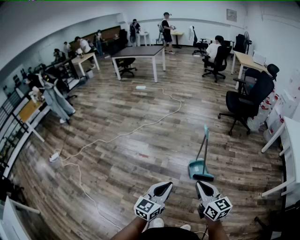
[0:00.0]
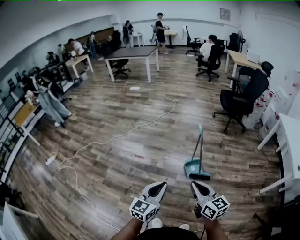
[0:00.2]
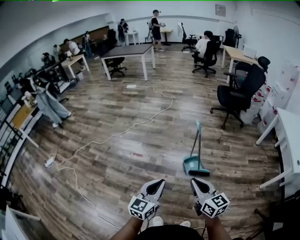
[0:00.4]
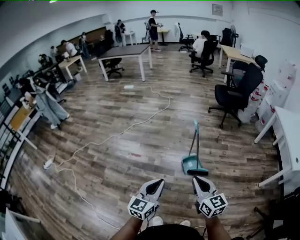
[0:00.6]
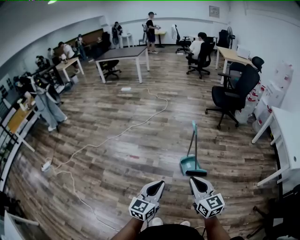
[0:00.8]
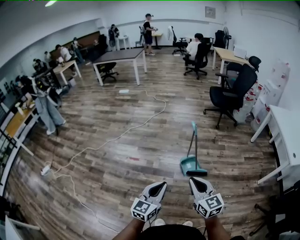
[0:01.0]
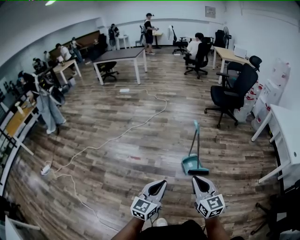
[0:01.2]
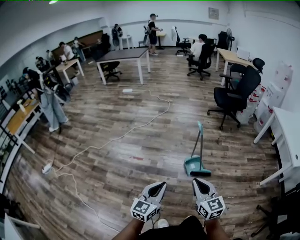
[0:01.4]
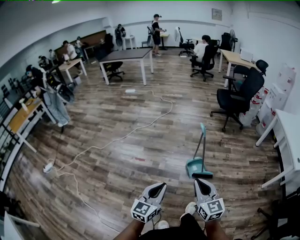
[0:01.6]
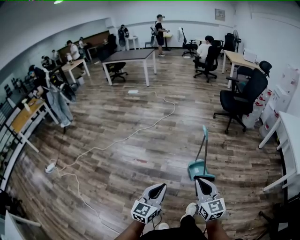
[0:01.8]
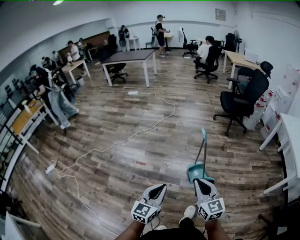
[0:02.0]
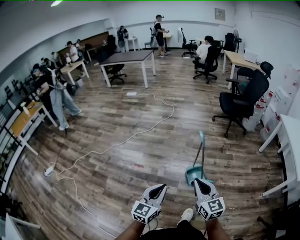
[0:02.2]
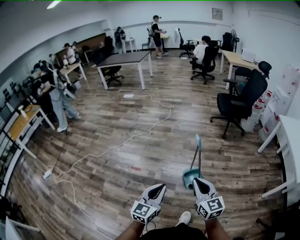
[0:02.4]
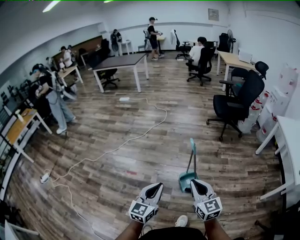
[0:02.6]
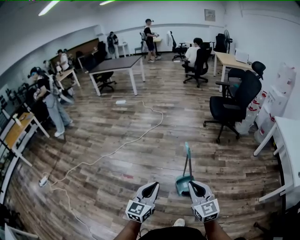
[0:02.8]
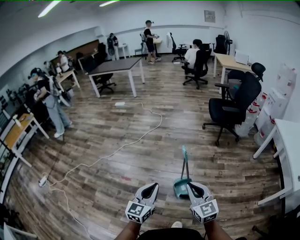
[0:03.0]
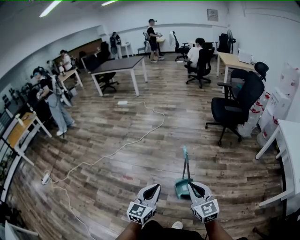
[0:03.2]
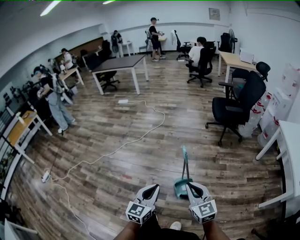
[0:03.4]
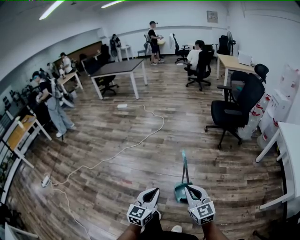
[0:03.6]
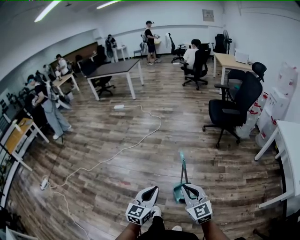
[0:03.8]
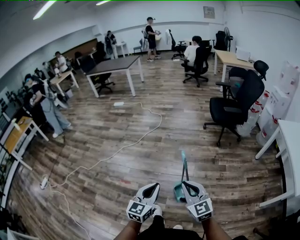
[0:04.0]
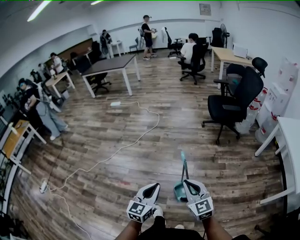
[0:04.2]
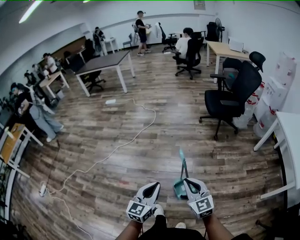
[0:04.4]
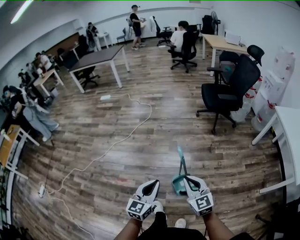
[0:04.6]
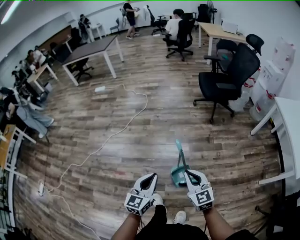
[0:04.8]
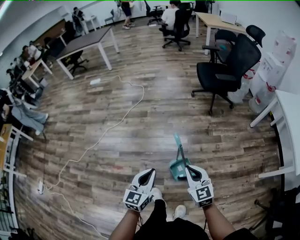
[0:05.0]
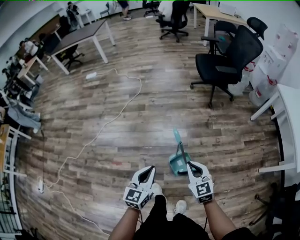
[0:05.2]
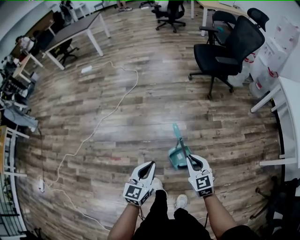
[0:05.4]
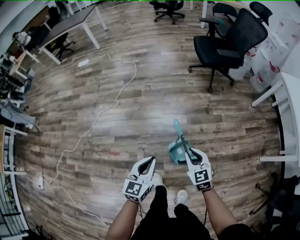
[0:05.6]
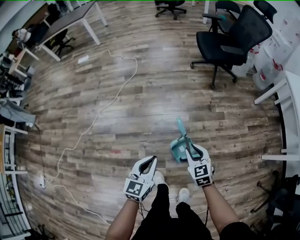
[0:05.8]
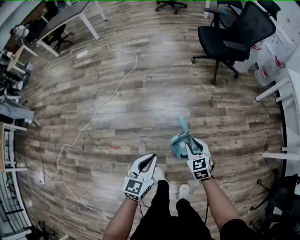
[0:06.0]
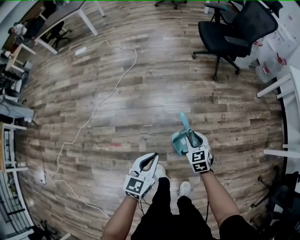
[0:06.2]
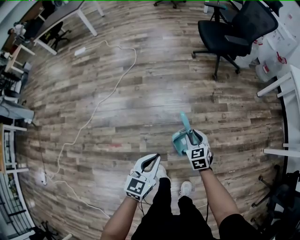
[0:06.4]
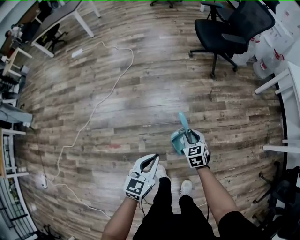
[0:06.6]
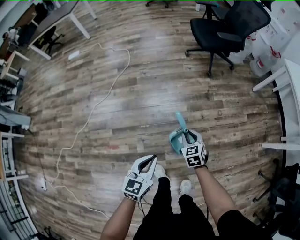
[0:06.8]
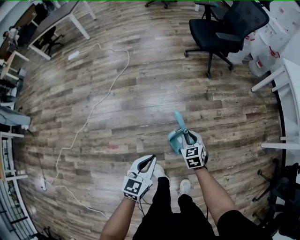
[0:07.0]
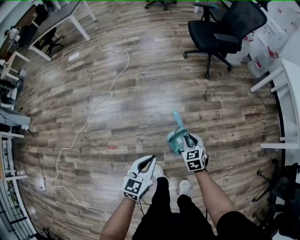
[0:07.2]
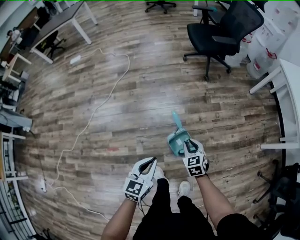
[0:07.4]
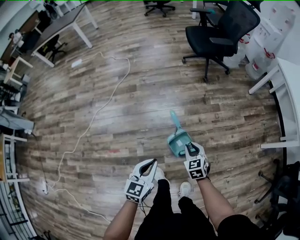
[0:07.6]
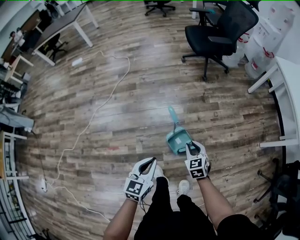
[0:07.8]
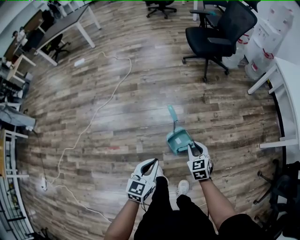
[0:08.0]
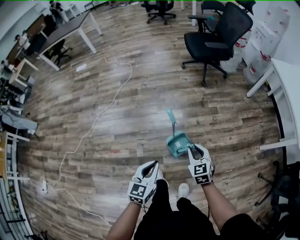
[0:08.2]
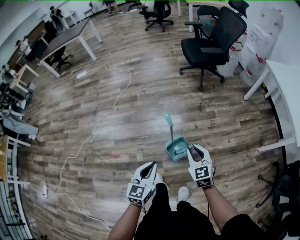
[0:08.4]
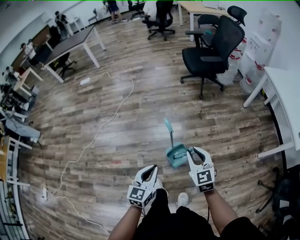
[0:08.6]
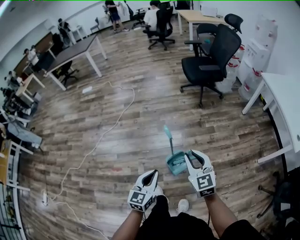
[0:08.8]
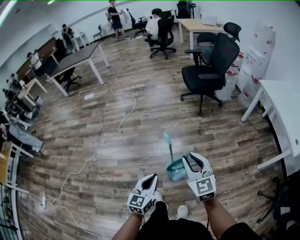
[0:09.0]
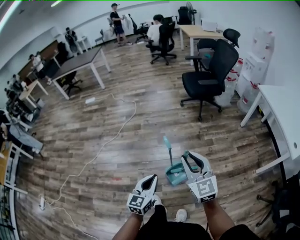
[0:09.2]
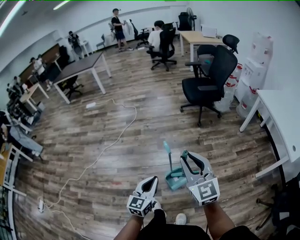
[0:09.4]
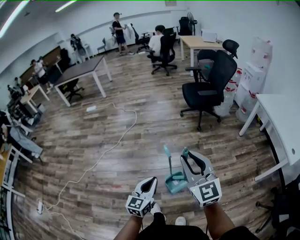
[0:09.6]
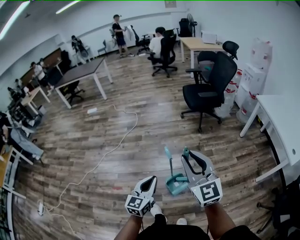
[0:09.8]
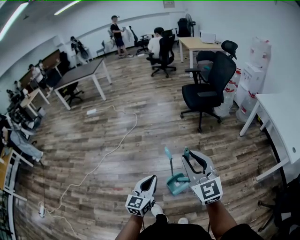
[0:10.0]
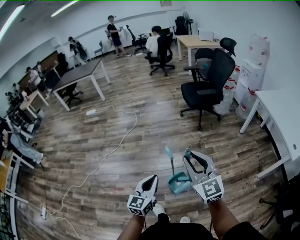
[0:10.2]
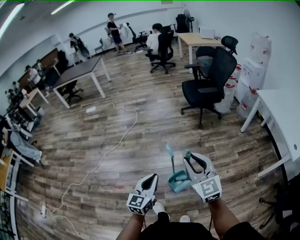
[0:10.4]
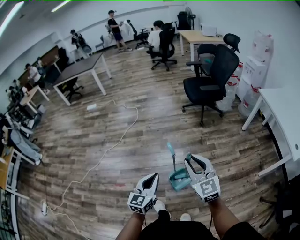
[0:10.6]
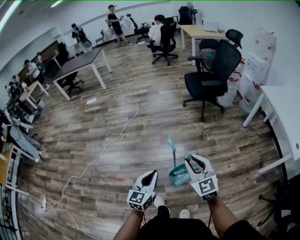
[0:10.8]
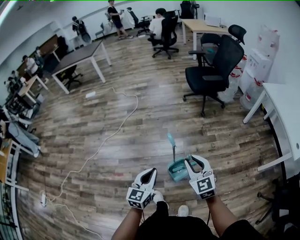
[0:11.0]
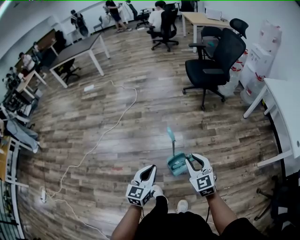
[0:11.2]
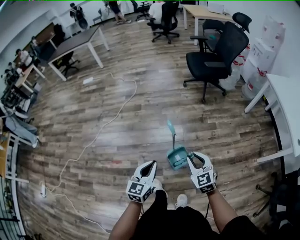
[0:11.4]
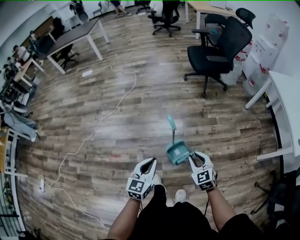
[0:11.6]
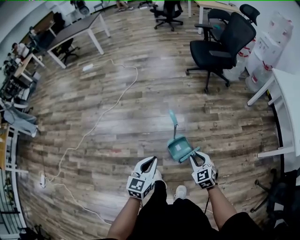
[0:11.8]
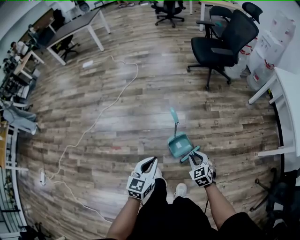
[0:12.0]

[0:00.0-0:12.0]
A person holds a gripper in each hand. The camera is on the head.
0:00.0 to 0:01.6: Both grippers move to the left, roughly 5 cm.
0:01.6 to 0:03.0: Both grippers travel together forward and to the right, about 25 cm.
0:03.0 to 0:04.4: The grippers both shift forward by some 10 cm.
0:04.4 to 0:06.0: The right gripper shifts about 25 cm downward and forward, swivels about 30 degrees, and opens its fingers. Meanwhile the left gripper travels downward and forward by roughly 15 cm.
0:06.0 to 0:07.6: The left gripper moves roughly 5 cm, while the right gripper ends up roughly 5 cm from where it was.
0:07.6 to 0:09.0: The right gripper moves upward, approximately 30 cm, and points its fingers approximately 30 degrees further upward. The left gripper shifts approximately 10 cm upward and backward.
0:09.0 to 0:10.4: Both grippers travel together upward, some 5 cm.
0:10.4 to 0:12.0: The left gripper is displaced downward by approximately 10 cm, while the right gripper travels downward by approximately 35 cm, and points its fingers about 40 degrees further downward.

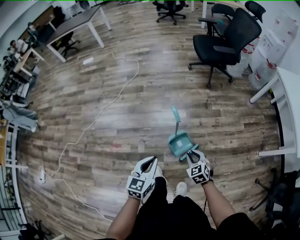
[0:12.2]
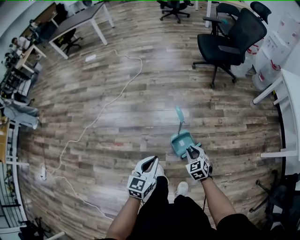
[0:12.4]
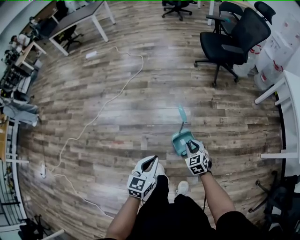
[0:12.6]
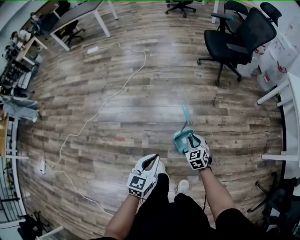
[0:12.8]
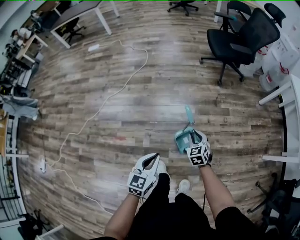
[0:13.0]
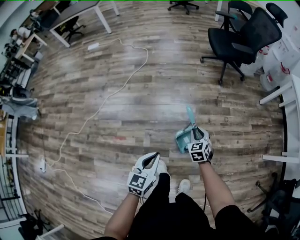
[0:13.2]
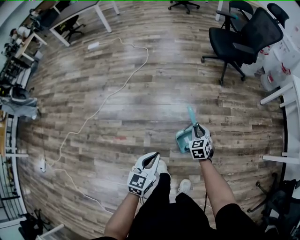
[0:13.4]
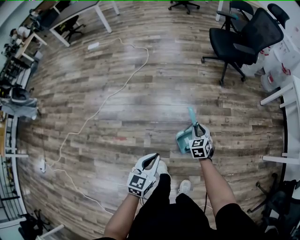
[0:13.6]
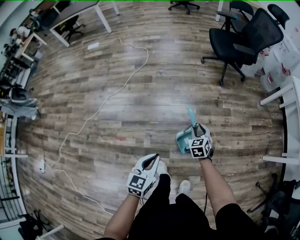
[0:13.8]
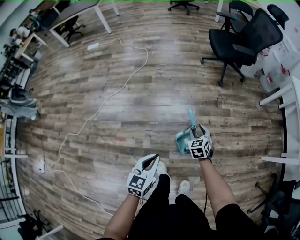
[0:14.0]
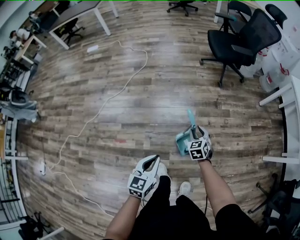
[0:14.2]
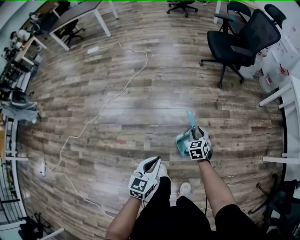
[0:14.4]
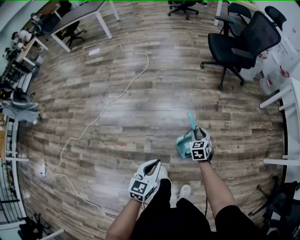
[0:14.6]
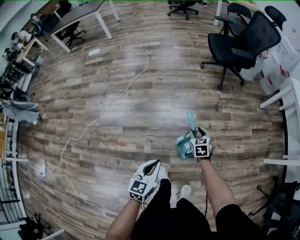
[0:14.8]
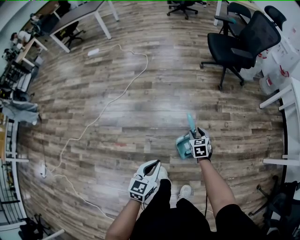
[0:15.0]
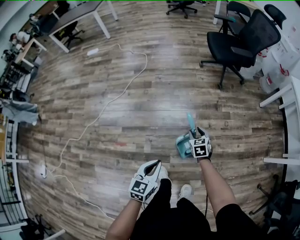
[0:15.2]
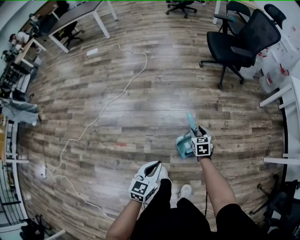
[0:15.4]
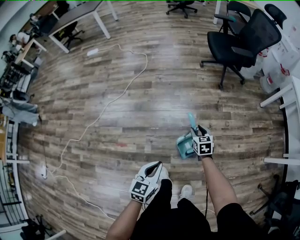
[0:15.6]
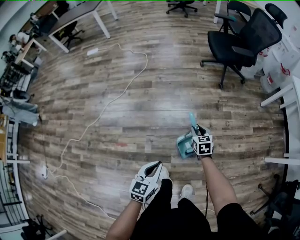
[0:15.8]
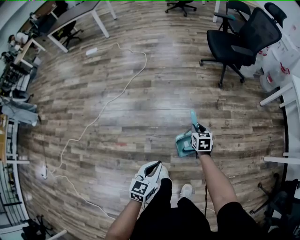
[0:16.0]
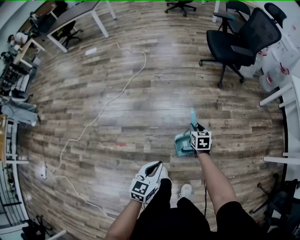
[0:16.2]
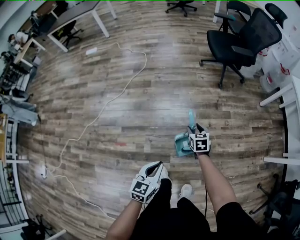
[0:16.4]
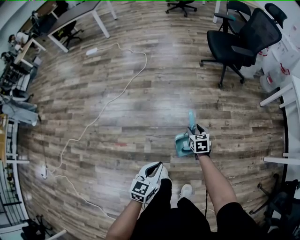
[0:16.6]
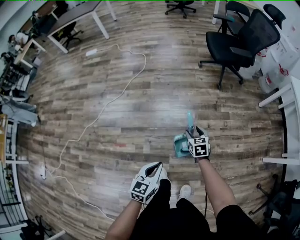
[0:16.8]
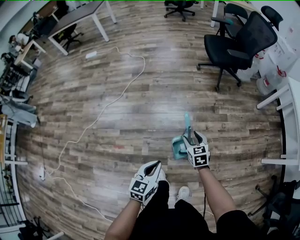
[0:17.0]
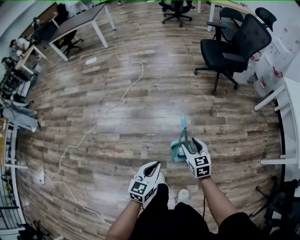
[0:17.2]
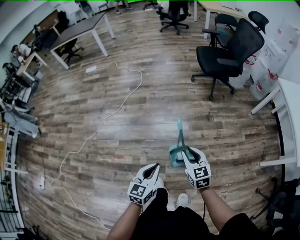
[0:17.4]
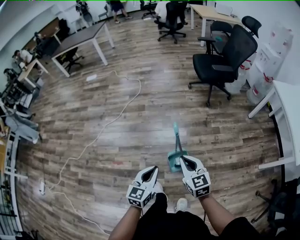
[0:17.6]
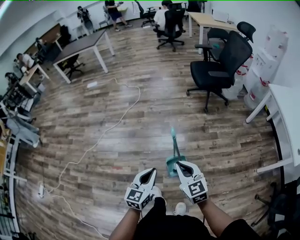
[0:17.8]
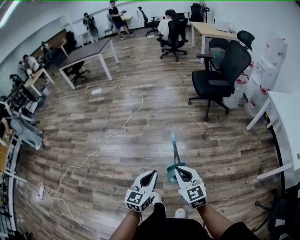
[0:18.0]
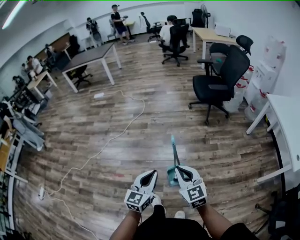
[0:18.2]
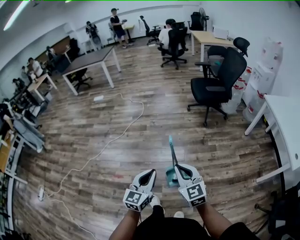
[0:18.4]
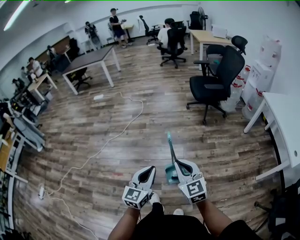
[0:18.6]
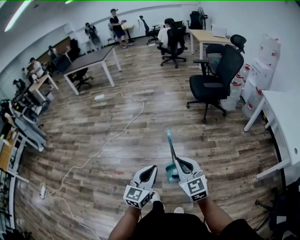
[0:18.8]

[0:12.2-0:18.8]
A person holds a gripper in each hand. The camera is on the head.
0:12.2 to 0:13.8: The right gripper moves forward, roughly 15 cm. Meanwhile the left gripper is displaced to the left by approximately 5 cm.
0:13.8 to 0:15.4: The grippers make only small movements.
0:15.4 to 0:17.2: The right gripper heads upward and backward, covering about 15 cm.
0:17.2 to 0:18.8: The right gripper shifts approximately 25 cm upward and backward, changes its angle by roughly 30 degrees, and closes. The left gripper moves upward, backward and to the right, approximately 20 cm, and changes its angle by approximately 20 degrees.

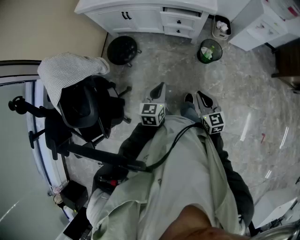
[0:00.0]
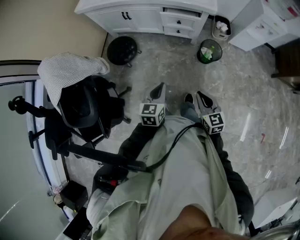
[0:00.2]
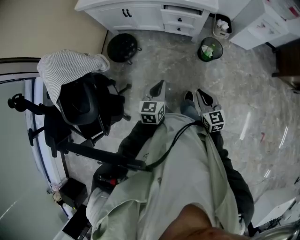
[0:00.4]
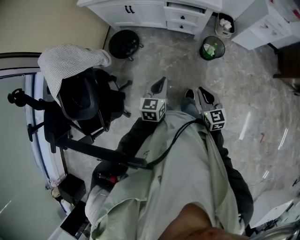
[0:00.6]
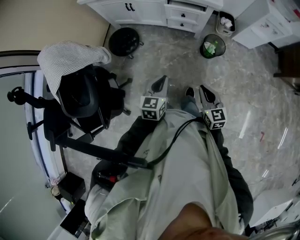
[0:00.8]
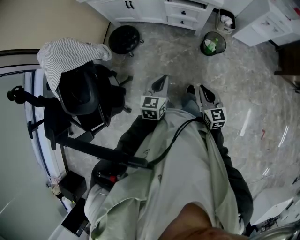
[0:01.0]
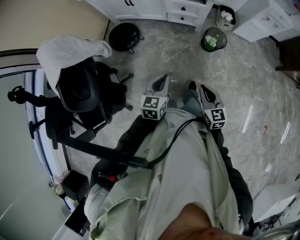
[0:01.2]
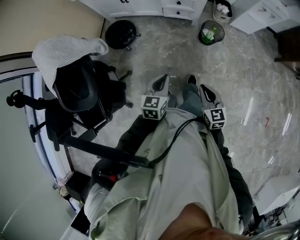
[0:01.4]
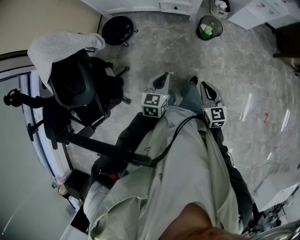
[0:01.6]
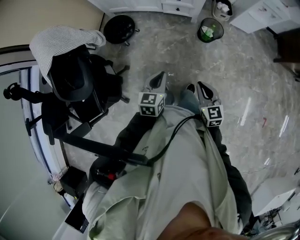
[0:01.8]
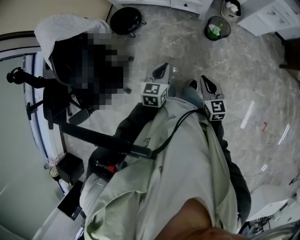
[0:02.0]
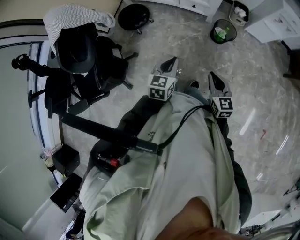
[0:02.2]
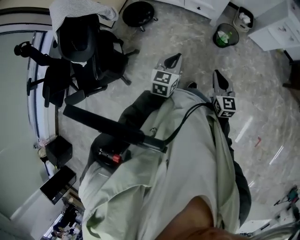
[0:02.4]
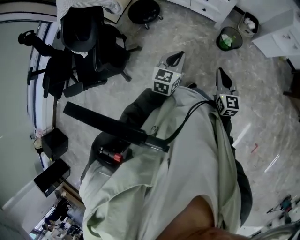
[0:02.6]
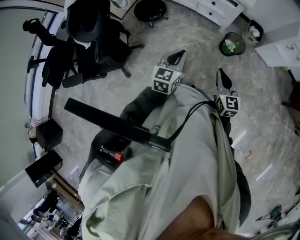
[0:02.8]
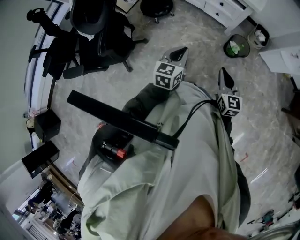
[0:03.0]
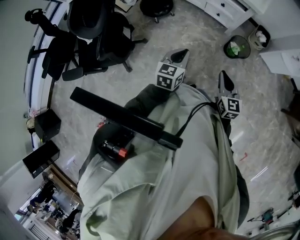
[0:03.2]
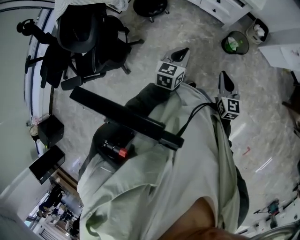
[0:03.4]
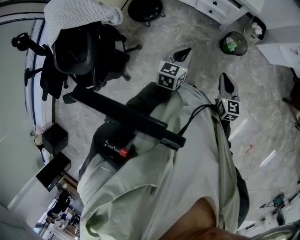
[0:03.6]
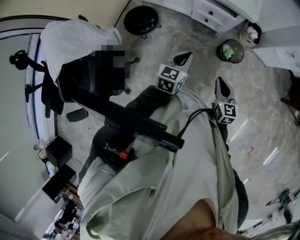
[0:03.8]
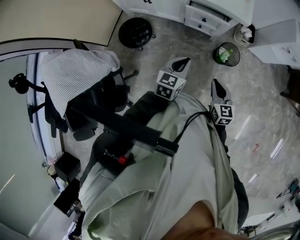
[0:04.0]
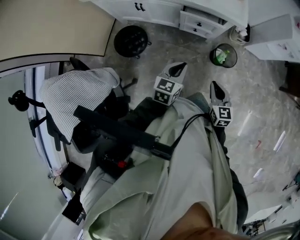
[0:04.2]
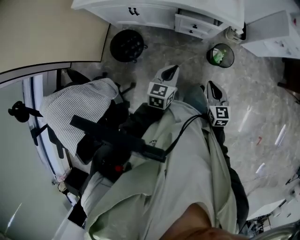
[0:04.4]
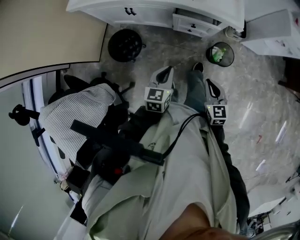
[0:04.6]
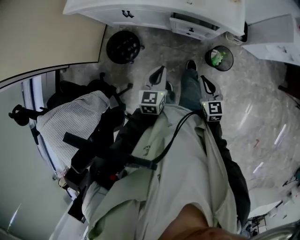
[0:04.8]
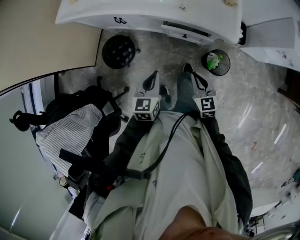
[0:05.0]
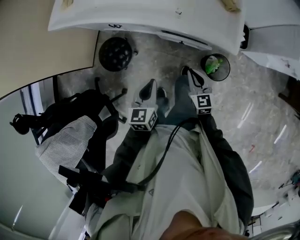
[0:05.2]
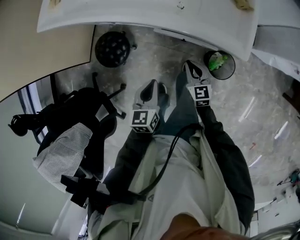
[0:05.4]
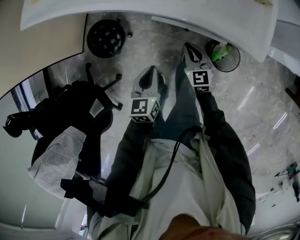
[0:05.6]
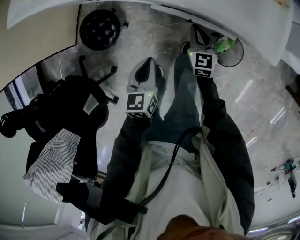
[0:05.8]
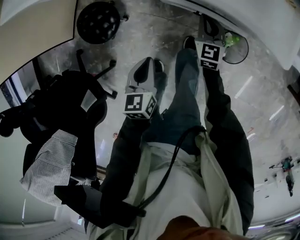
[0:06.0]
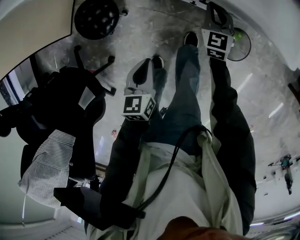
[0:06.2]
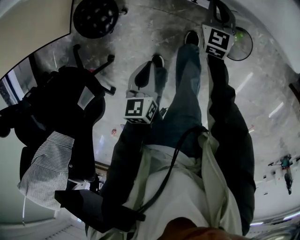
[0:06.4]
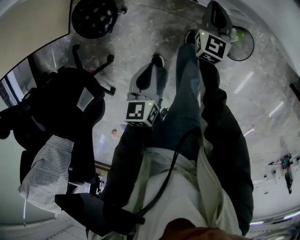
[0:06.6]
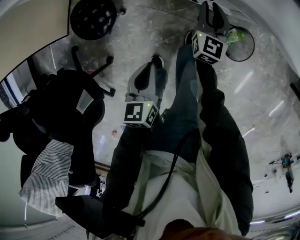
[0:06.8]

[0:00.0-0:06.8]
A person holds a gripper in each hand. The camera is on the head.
0:00.0 to 0:01.4: Both grippers move backward, roughly 5 cm.
0:01.4 to 0:02.8: Both grippers travel together to the right, roughly 10 cm.
0:02.8 to 0:04.0: The grippers both shift forward by roughly 20 cm.
0:04.0 to 0:05.4: The right gripper heads forward and downward, covering roughly 35 cm. Meanwhile the left gripper is displaced forward and downward by some 20 cm, and swivels some 20 degrees.
0:05.4 to 0:06.8: The left gripper heads downward, covering approximately 10 cm. Meanwhile the right gripper travels forward and downward by approximately 15 cm, and changes its angle by about 30 degrees.
